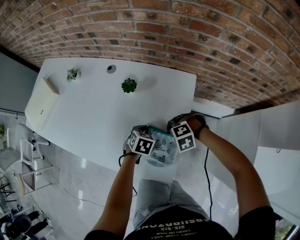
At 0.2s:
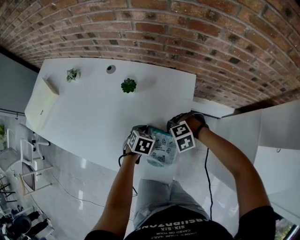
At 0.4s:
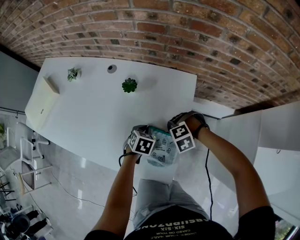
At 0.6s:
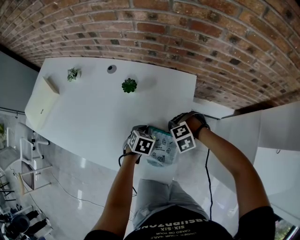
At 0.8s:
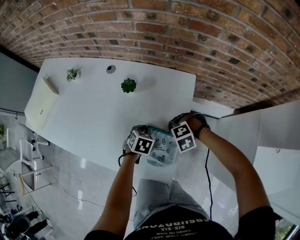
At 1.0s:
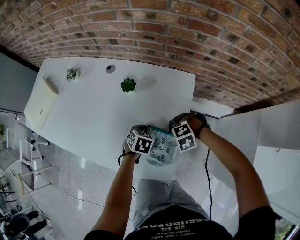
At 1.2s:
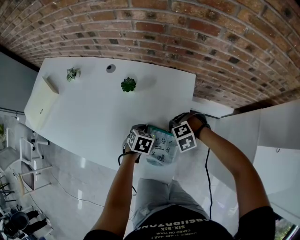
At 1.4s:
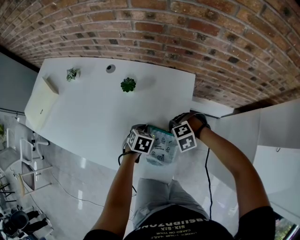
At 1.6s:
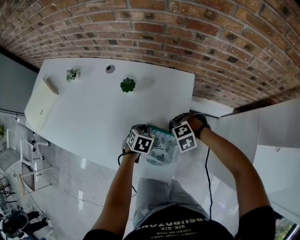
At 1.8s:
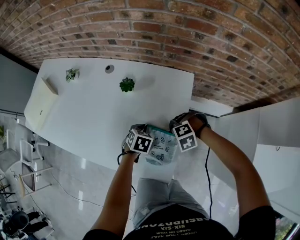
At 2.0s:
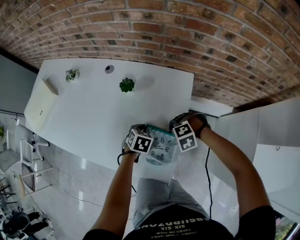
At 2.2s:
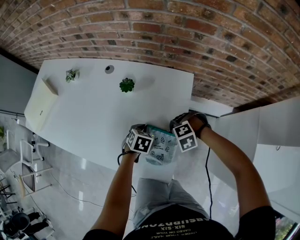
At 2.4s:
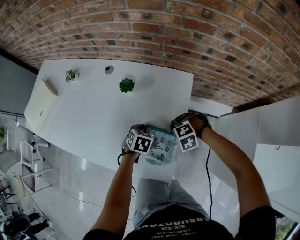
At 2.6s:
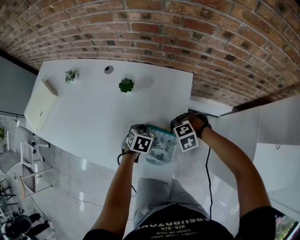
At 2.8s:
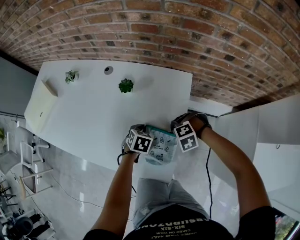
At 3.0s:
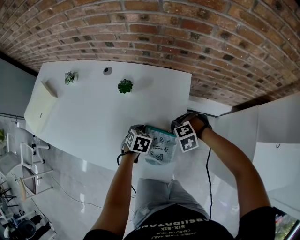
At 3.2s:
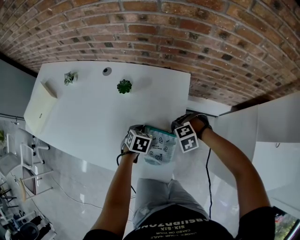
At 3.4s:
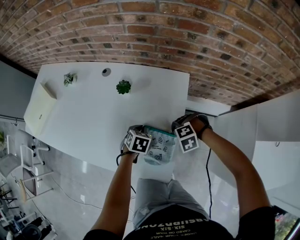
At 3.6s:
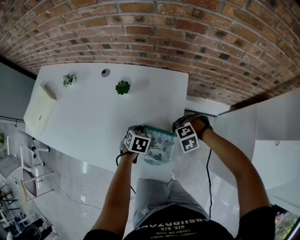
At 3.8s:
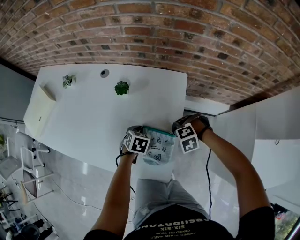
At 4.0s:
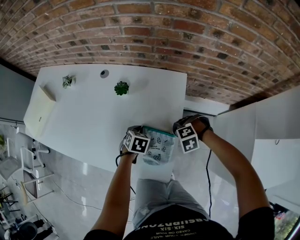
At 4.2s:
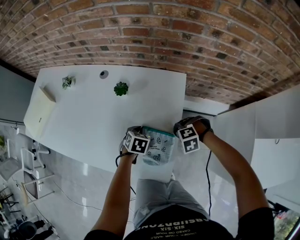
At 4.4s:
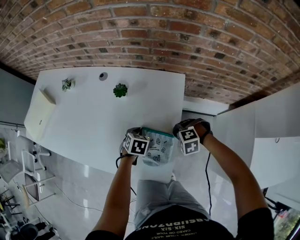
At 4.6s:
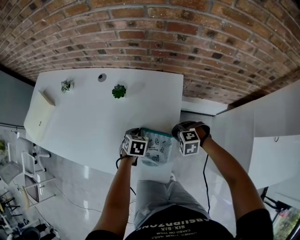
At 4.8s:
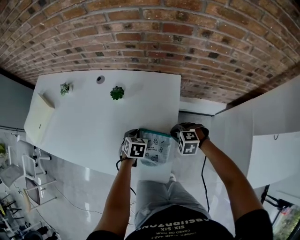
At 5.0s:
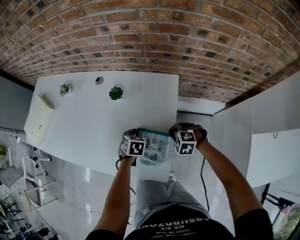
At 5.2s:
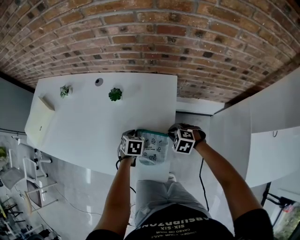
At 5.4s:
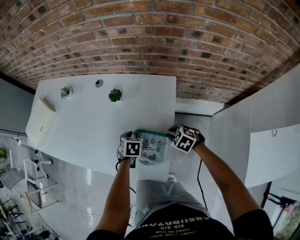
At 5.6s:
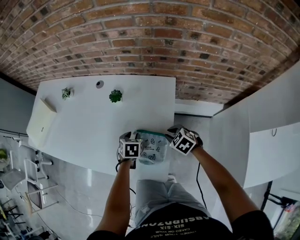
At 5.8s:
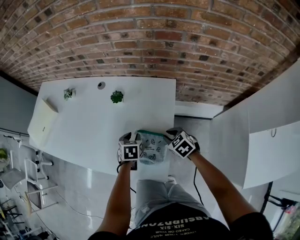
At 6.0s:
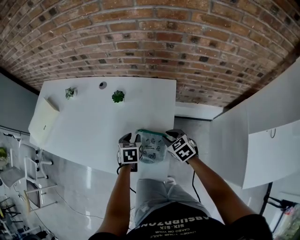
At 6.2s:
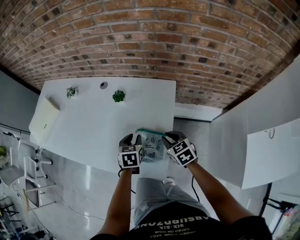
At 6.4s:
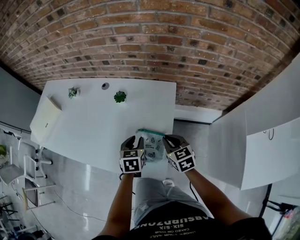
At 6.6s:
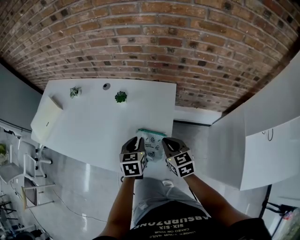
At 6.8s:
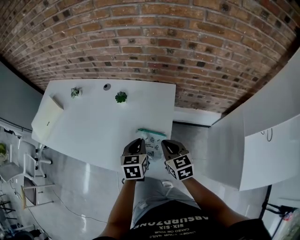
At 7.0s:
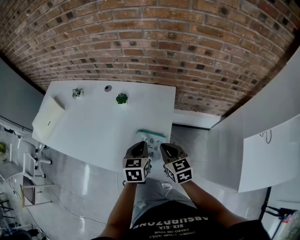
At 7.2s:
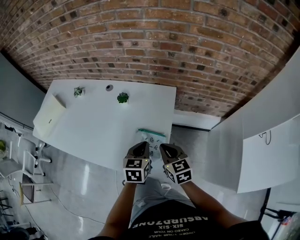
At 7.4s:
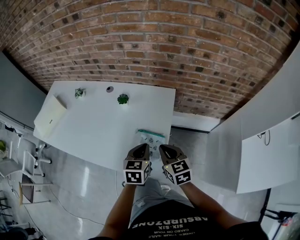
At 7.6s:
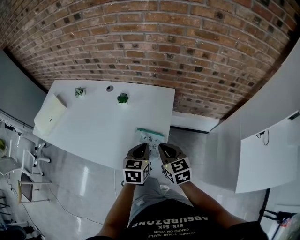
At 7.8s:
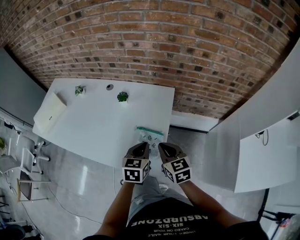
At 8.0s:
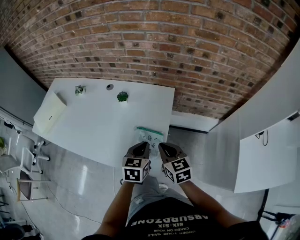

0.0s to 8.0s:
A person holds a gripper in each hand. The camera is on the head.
0.0s to 3.2s: The grippers make only small movements.
3.2s to 4.8s: The right gripper turns by about 30 degrees.
4.8s to 6.4s: The left gripper goes approximately 15 cm upward and backward, rotates roughly 20 degrees, and opens. The right gripper travels upward by roughly 15 cm, and rotates around the line of its fingers by some 50 degrees, clockwise from behind.
6.4s to 8.0s: The right gripper heads upward and backward, covering approximately 10 cm; the left gripper goes roughly 10 cm backward, upward and to the right, and closes up.

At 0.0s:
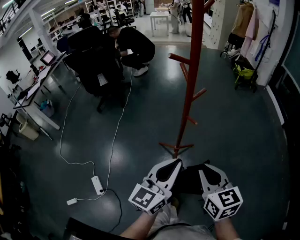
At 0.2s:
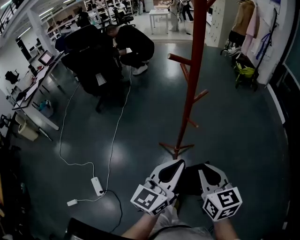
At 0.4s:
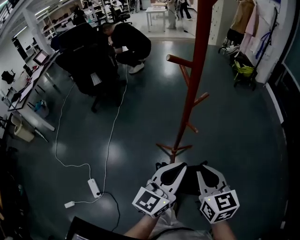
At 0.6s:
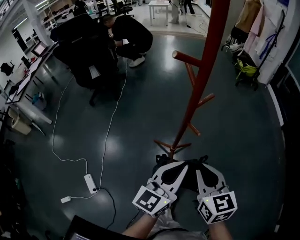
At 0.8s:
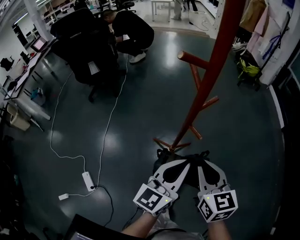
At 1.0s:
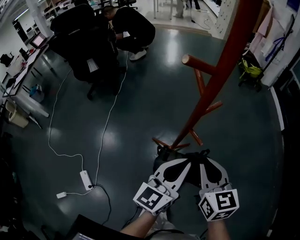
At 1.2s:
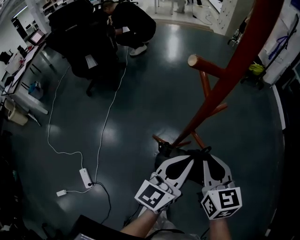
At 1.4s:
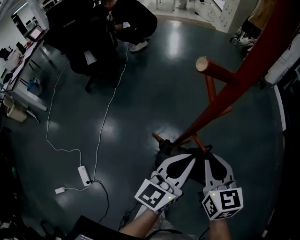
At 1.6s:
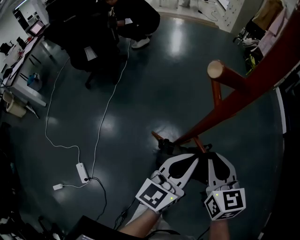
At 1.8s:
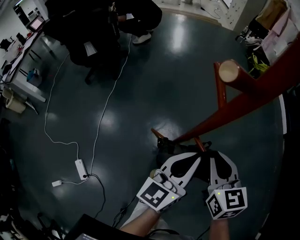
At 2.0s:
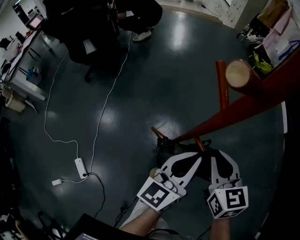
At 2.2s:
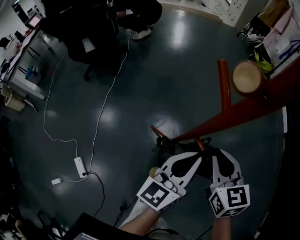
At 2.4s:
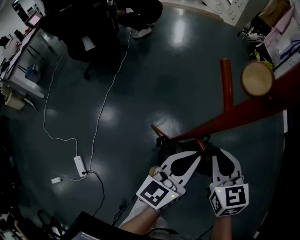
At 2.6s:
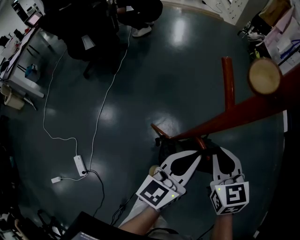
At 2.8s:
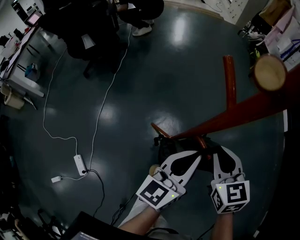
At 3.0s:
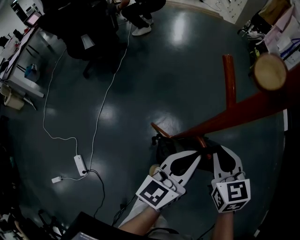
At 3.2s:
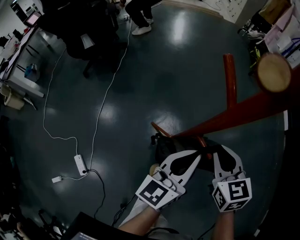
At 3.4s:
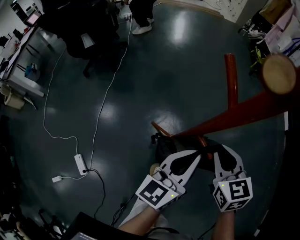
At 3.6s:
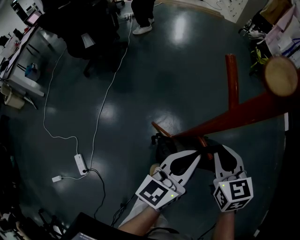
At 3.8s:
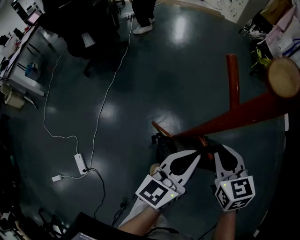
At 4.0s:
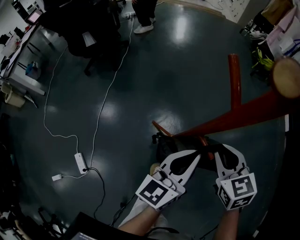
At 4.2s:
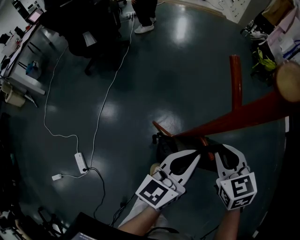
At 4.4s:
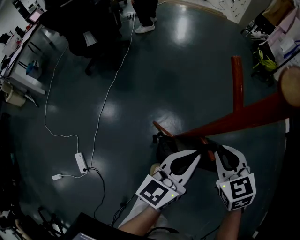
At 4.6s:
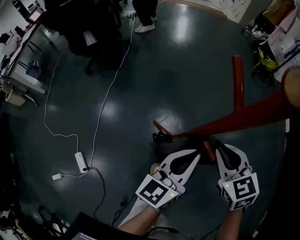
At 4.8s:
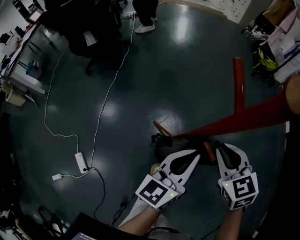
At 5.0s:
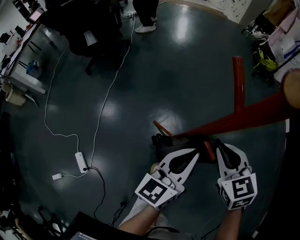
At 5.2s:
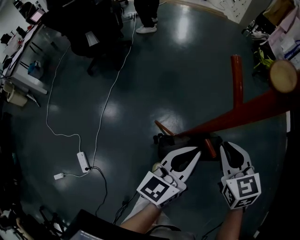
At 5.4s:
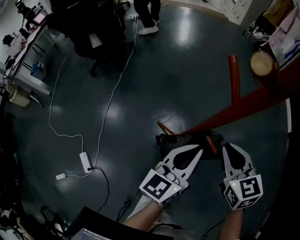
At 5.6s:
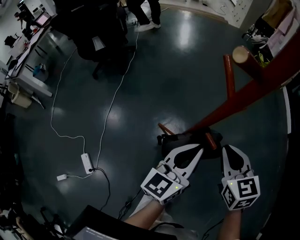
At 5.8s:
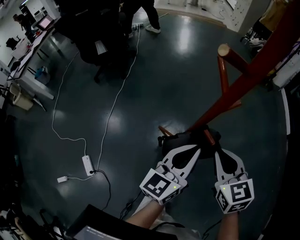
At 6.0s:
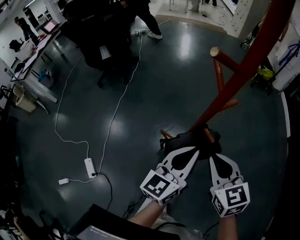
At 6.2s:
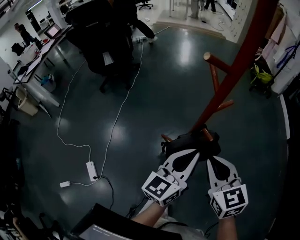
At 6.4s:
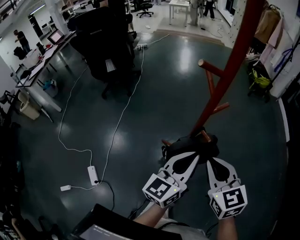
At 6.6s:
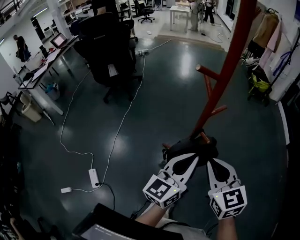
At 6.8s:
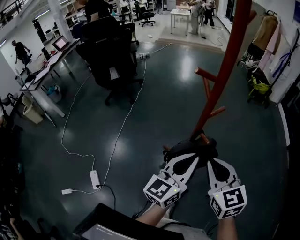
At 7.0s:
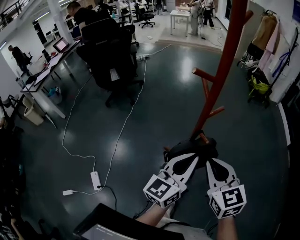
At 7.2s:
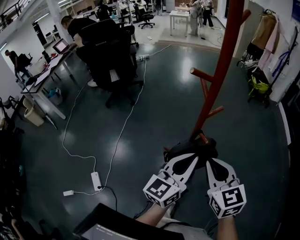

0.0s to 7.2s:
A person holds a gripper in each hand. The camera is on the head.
0.0s to 1.4s: Both grippers travel together forward, approximately 20 cm.
1.4s to 2.8s: The right gripper heads forward and downward, covering about 5 cm, while the left gripper ends up some 5 cm from where it was.
2.8s to 4.4s: There are only small adjustments of the grippers.
4.4s to 5.8s: The left gripper changes place by some 5 cm; the right gripper goes some 10 cm backward and upward.
5.8s to 7.2s: The grippers both shift backward and upward by about 10 cm.

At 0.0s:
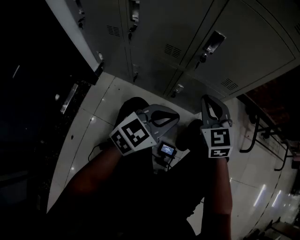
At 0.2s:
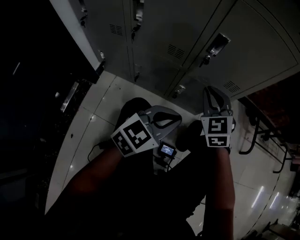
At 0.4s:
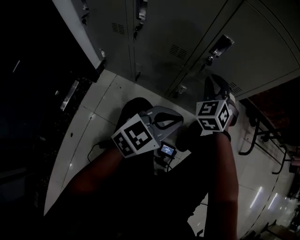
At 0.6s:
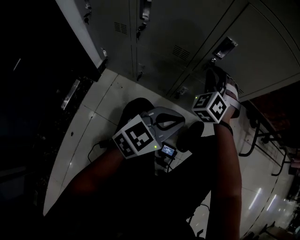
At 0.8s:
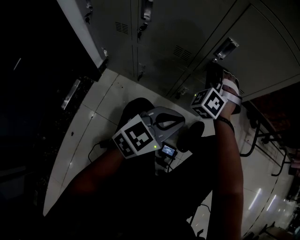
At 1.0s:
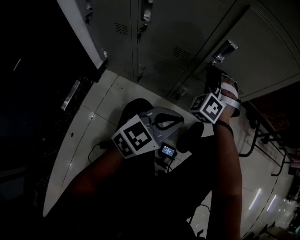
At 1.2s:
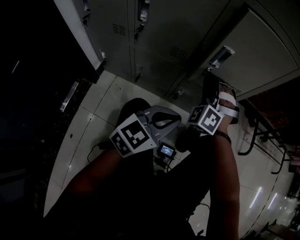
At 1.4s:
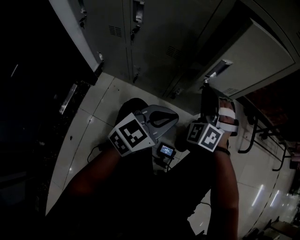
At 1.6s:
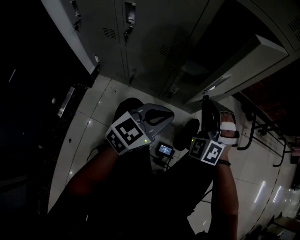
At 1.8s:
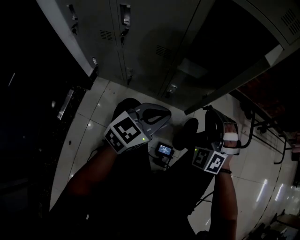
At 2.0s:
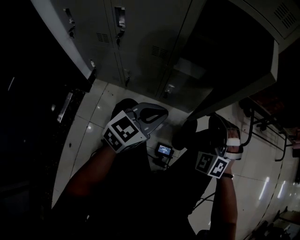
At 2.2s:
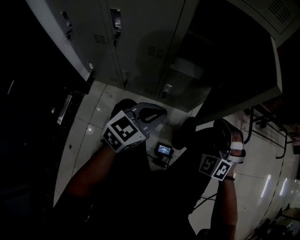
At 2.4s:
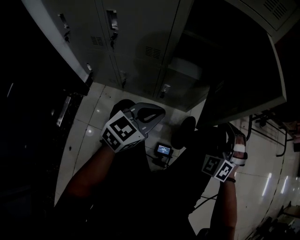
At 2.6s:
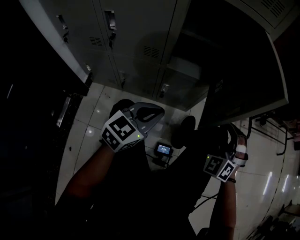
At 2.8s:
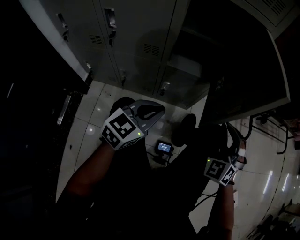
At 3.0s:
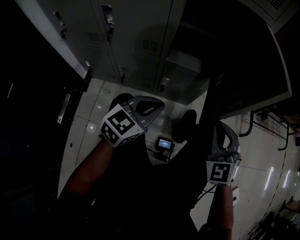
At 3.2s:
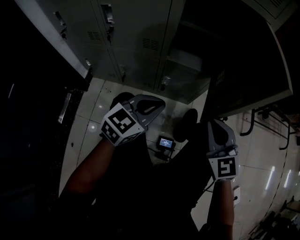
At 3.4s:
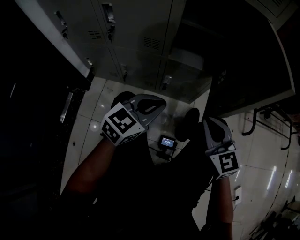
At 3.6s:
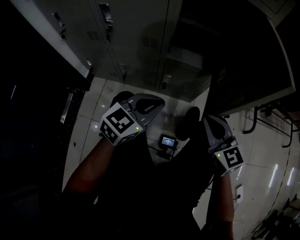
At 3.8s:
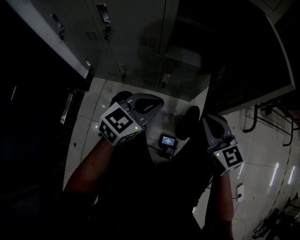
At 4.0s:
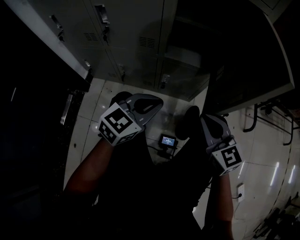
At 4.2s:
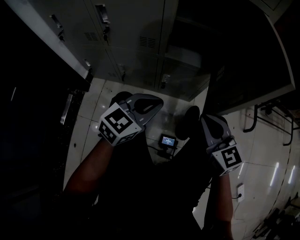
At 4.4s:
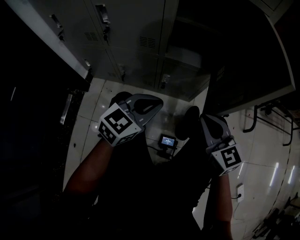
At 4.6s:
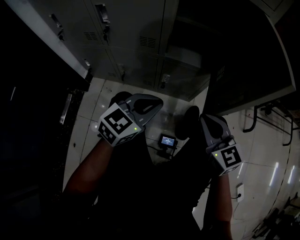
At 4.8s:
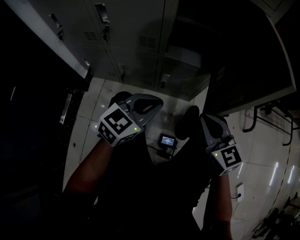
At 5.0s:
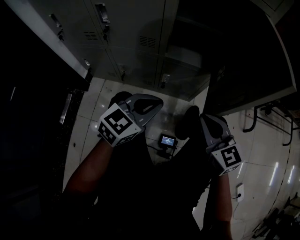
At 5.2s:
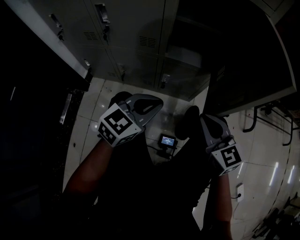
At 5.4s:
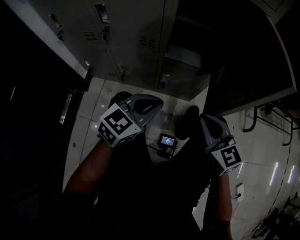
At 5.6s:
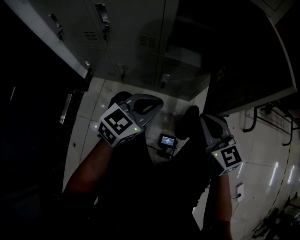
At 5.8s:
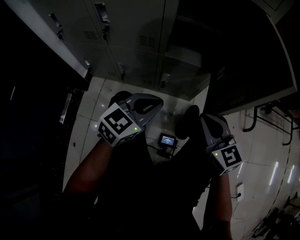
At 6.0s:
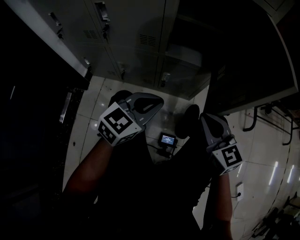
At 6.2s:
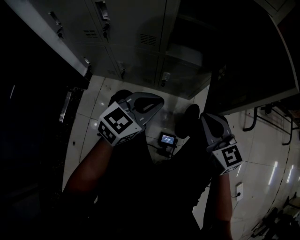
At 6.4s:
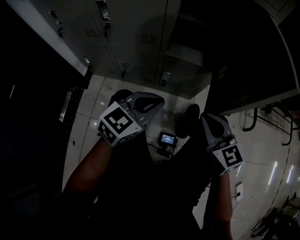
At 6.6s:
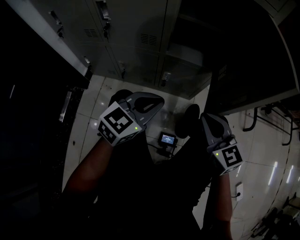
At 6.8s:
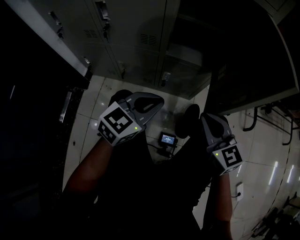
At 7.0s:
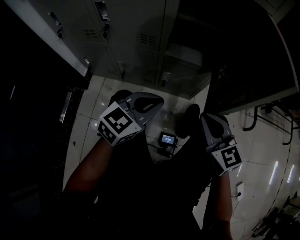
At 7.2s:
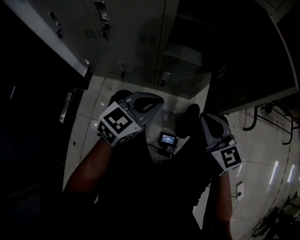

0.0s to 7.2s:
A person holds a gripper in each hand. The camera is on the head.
0.0s to 1.4s: The right gripper moves some 10 cm forward and comes back, and rolls counterclockwise, seen from behind, by some 50 degrees.
1.4s to 2.8s: The right gripper travels to the right by some 20 cm, and changes its angle by approximately 20 degrees.
2.8s to 4.4s: The right gripper shifts about 10 cm to the left, and swivels some 60 degrees.
4.4s to 7.2s: Both grippers stay put.

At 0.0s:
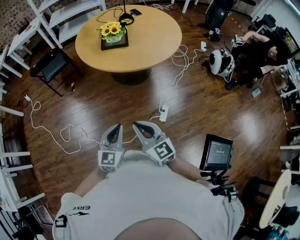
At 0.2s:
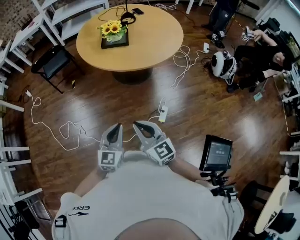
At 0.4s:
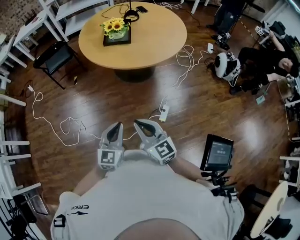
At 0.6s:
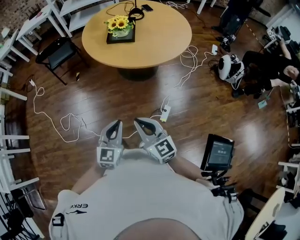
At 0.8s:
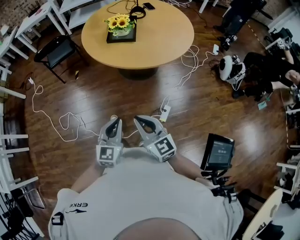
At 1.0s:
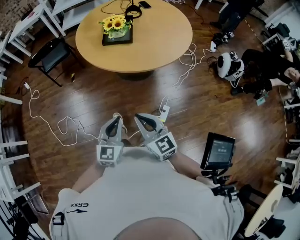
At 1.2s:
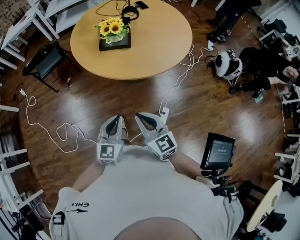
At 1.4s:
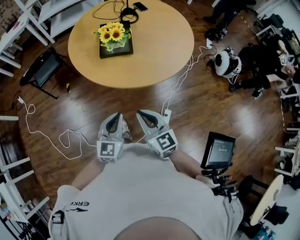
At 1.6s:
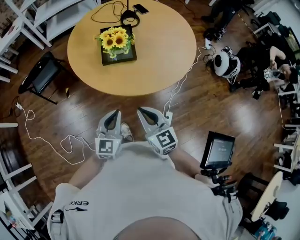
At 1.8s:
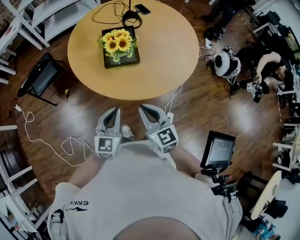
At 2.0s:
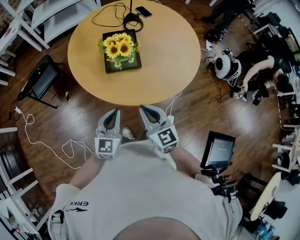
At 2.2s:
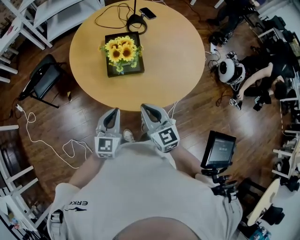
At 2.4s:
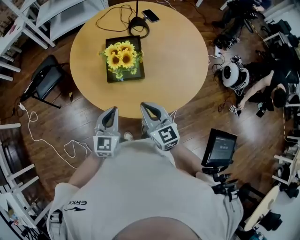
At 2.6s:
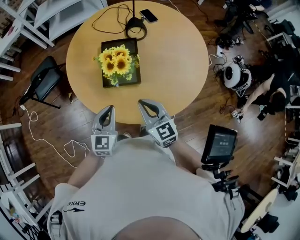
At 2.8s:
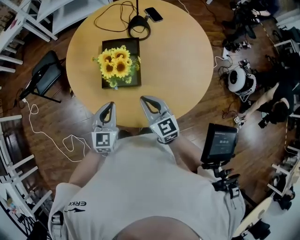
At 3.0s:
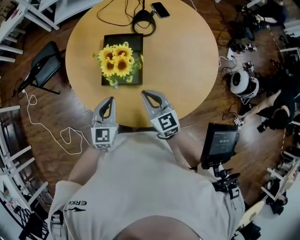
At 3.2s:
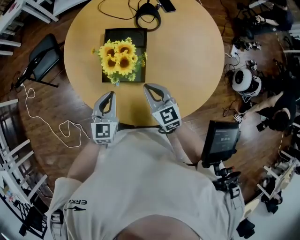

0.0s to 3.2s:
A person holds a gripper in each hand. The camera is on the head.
0.0s to 1.6s: Both grippers move forward, approximately 30 cm.
1.6s to 3.2s: The grippers both shift forward by roughly 30 cm.
